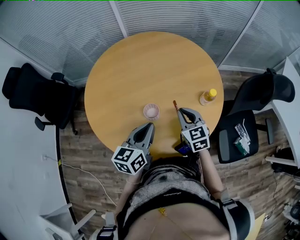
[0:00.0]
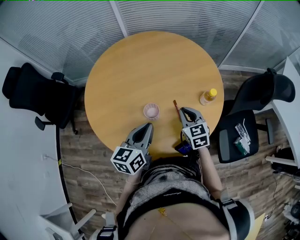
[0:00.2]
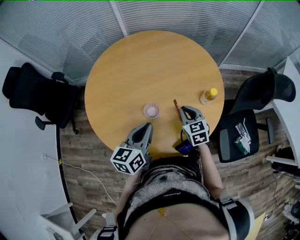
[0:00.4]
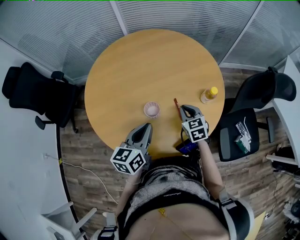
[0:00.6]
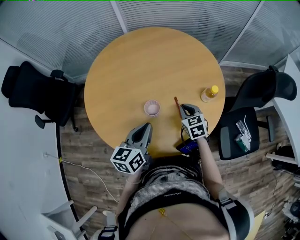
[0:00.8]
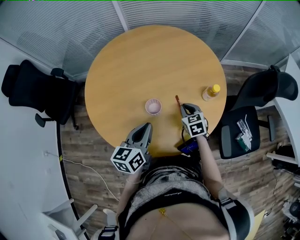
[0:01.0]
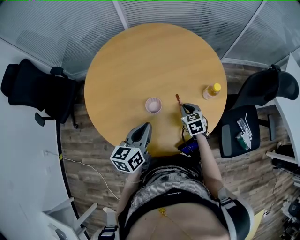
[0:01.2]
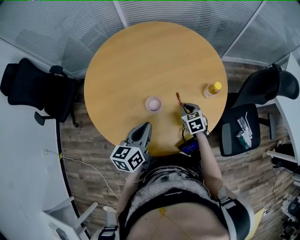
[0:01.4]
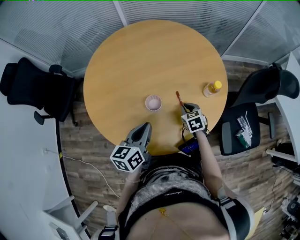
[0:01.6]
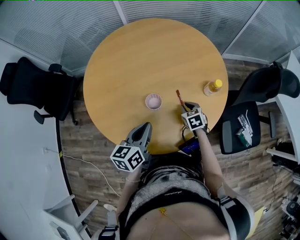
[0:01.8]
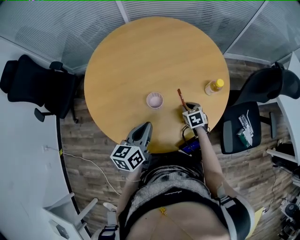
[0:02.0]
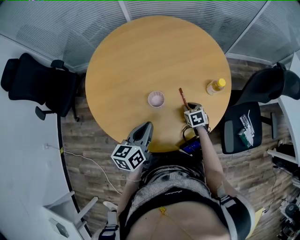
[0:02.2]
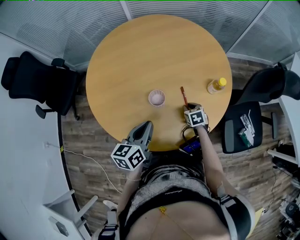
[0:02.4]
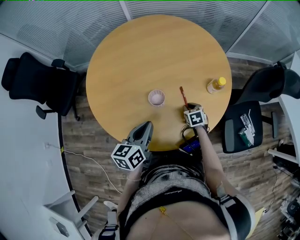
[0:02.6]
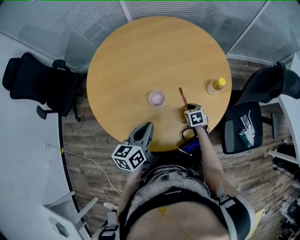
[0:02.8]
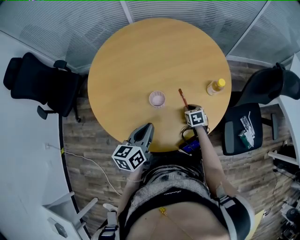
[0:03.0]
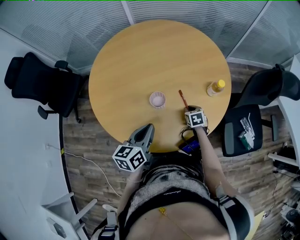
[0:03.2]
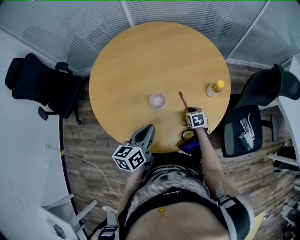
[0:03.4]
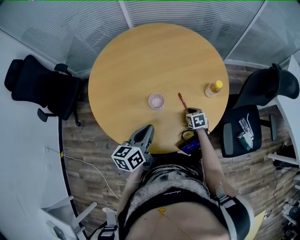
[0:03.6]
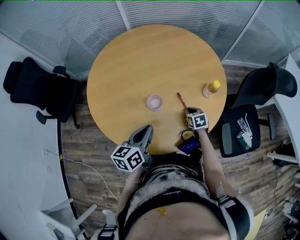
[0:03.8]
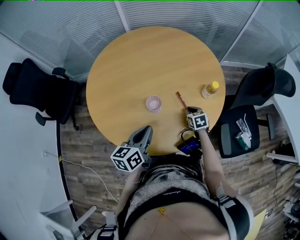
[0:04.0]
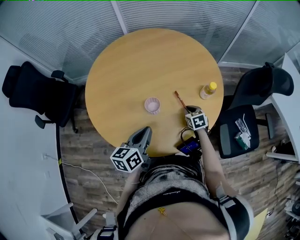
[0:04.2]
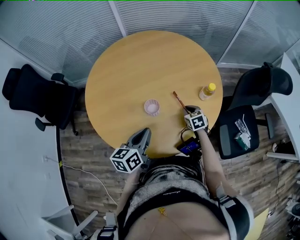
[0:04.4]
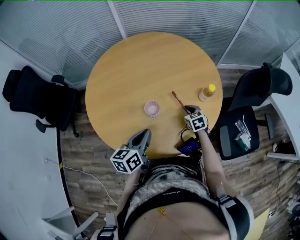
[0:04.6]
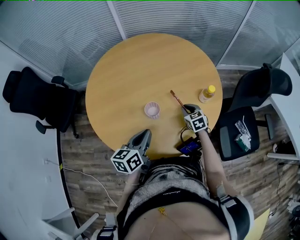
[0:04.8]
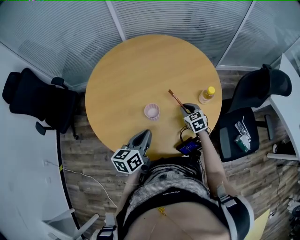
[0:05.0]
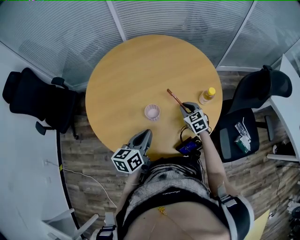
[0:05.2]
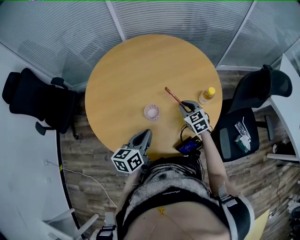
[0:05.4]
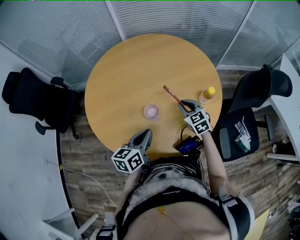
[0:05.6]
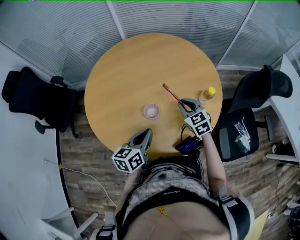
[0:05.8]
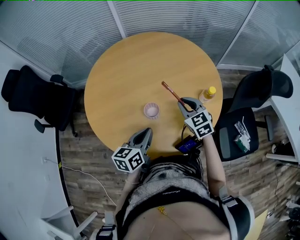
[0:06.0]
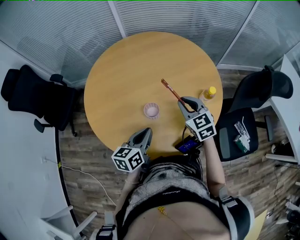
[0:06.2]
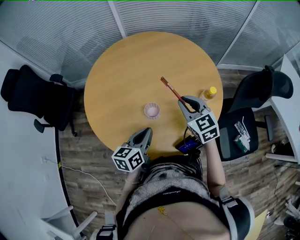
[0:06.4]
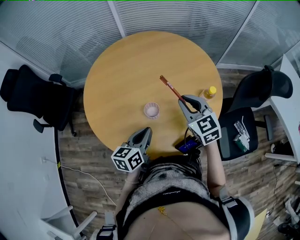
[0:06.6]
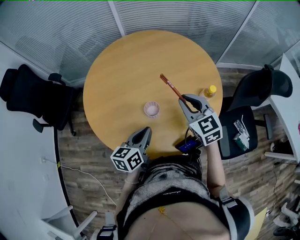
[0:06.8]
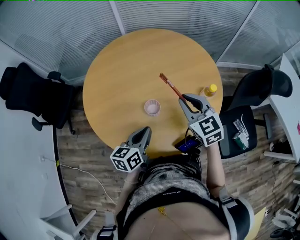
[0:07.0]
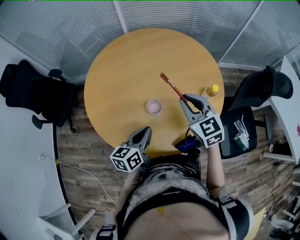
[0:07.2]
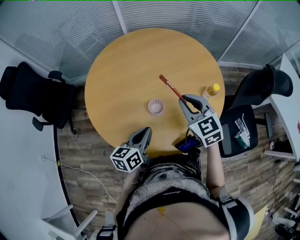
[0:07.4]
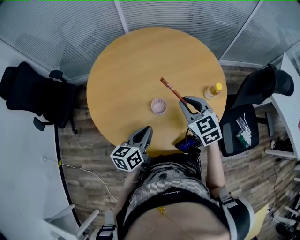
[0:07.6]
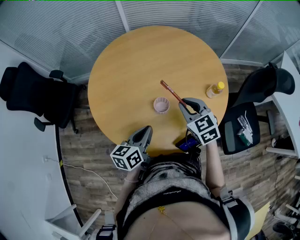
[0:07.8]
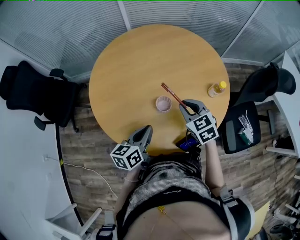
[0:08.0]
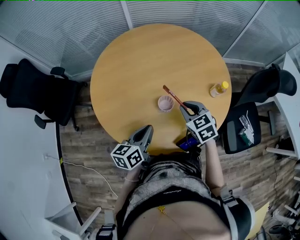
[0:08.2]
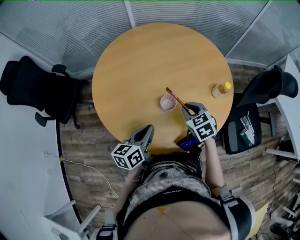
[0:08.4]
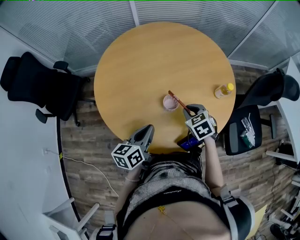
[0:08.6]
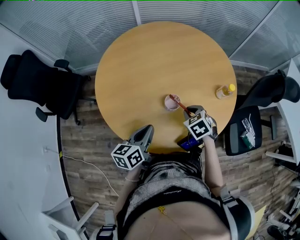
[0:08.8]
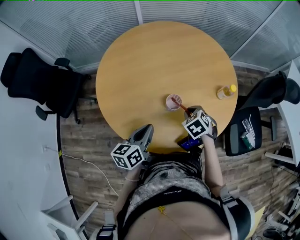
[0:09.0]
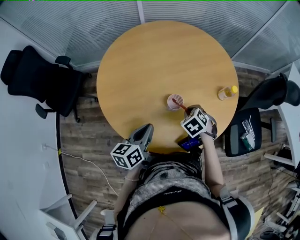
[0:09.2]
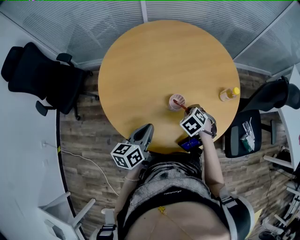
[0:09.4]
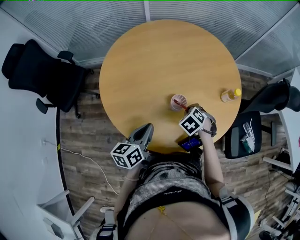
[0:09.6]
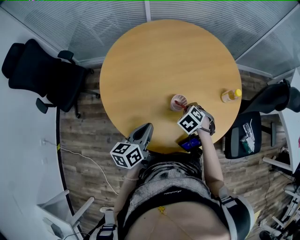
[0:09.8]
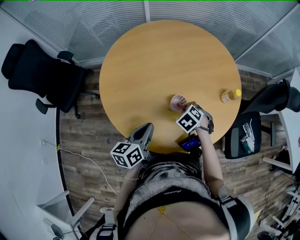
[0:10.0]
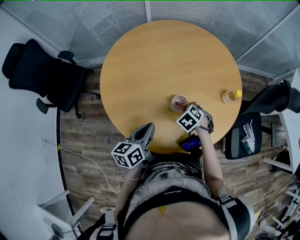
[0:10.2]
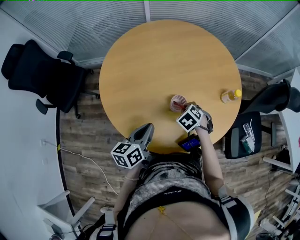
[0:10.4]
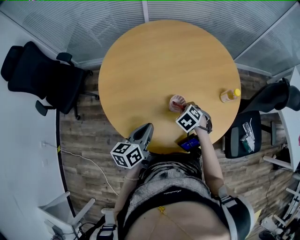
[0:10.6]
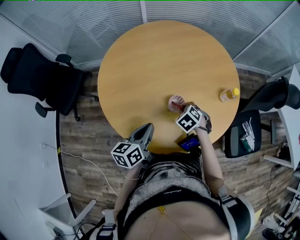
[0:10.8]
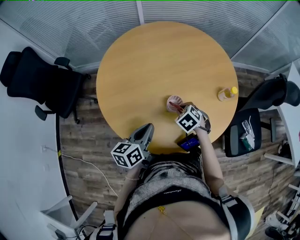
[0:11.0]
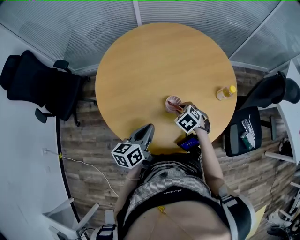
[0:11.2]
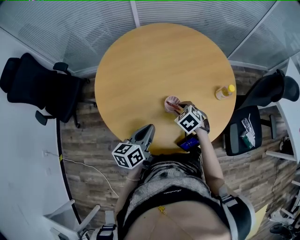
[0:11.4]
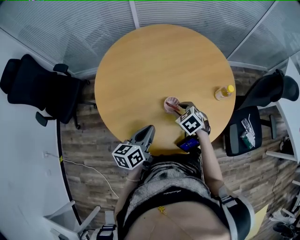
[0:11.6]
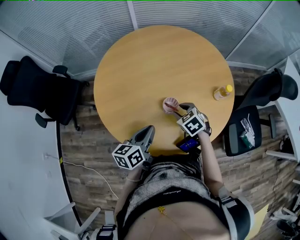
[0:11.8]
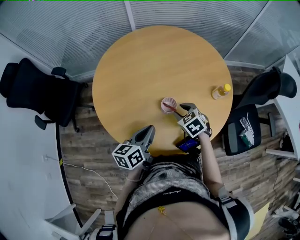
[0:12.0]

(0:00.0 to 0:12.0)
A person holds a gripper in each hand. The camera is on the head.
0:00.0 - 0:01.6: The right gripper goes roughly 15 cm downward, and rotates some 20 degrees; the left gripper ends up roughly 5 cm from where it was.
0:01.6 - 0:03.0: The right gripper heads downward, covering about 5 cm.
0:03.0 - 0:04.4: The right gripper shifts about 5 cm upward.
0:04.4 - 0:06.0: The right gripper is displaced upward by about 15 cm, and swivels approximately 20 degrees.
0:06.0 - 0:07.6: The right gripper goes some 10 cm upward and to the left.
0:07.6 - 0:09.0: The right gripper shifts roughly 15 cm downward, and points its fingers roughly 30 degrees further downward. The left gripper shifts roughly 5 cm to the left.
0:09.0 - 0:10.4: The right gripper ends up about 5 cm from where it was.
0:10.4 - 0:12.0: The right gripper swivels approximately 20 degrees, and opens up.

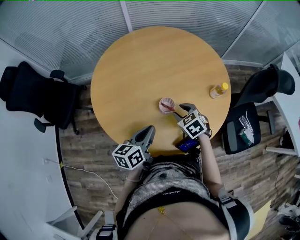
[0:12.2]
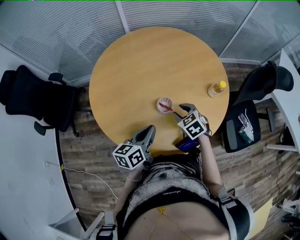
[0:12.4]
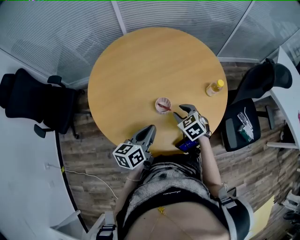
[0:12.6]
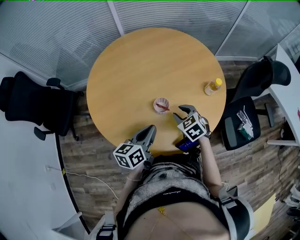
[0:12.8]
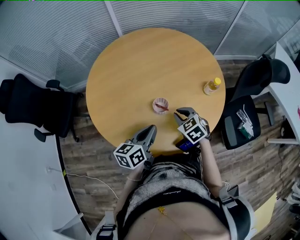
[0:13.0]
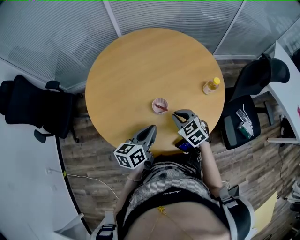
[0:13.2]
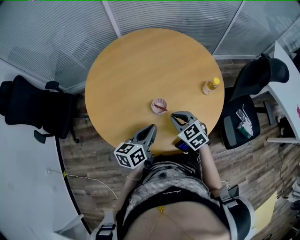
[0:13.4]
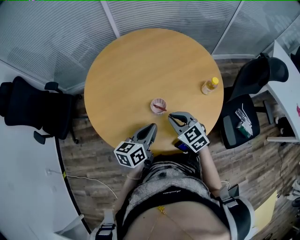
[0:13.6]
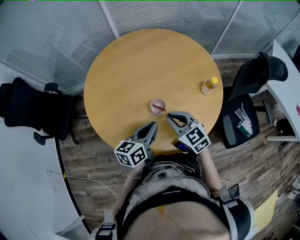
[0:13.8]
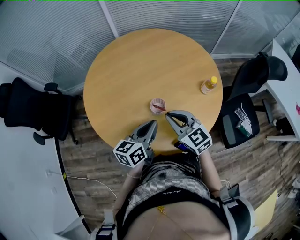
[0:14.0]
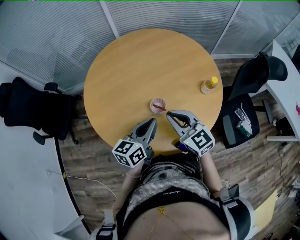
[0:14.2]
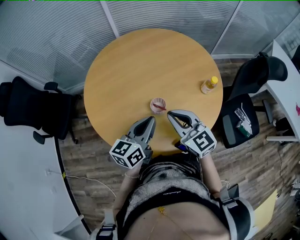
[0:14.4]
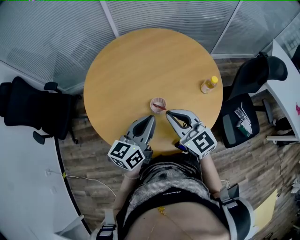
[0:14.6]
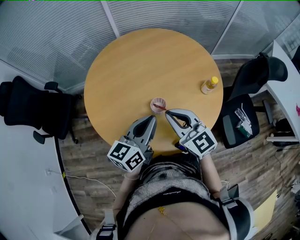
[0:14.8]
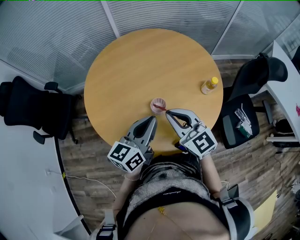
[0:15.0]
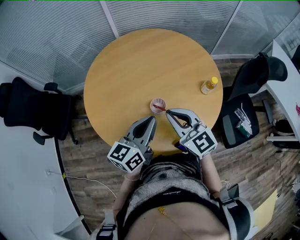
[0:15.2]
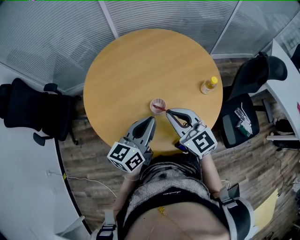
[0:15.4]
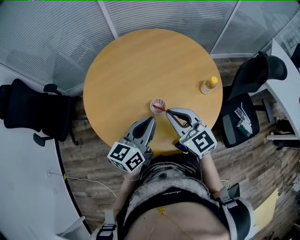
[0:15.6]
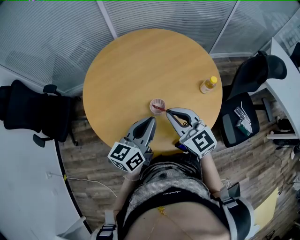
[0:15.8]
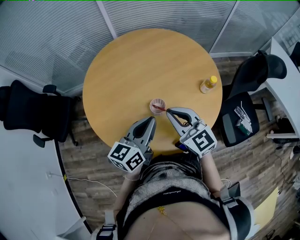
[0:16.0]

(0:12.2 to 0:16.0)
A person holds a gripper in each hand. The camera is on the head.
0:12.2 - 0:13.4: The right gripper shifts by about 5 cm, and closes its fingers.
0:13.4 - 0:14.8: Both grippers move upward, approximately 10 cm. The right gripper angles its fingers upward, by roughly 30 degrees.
0:14.8 - 0:16.0: The grippers move only a little.

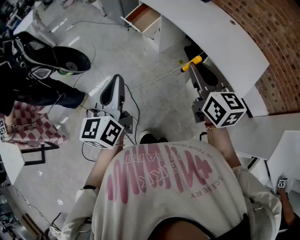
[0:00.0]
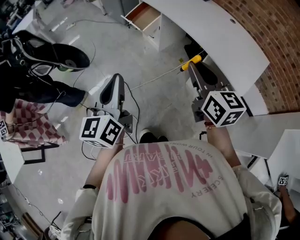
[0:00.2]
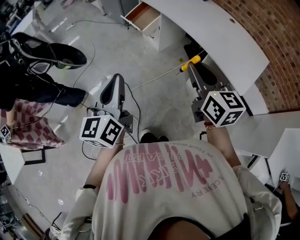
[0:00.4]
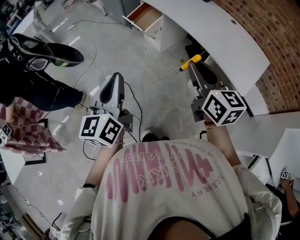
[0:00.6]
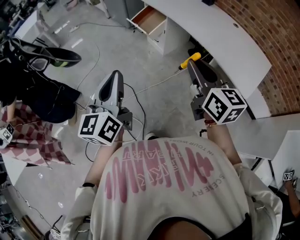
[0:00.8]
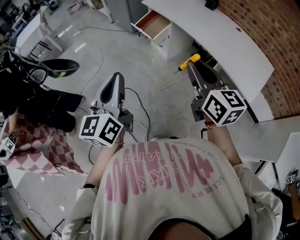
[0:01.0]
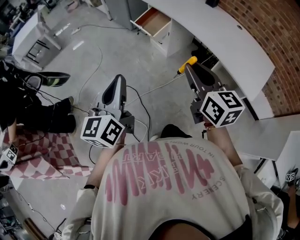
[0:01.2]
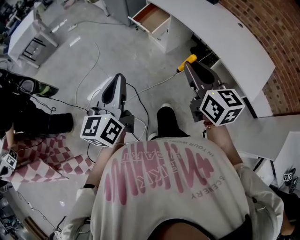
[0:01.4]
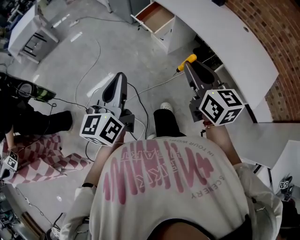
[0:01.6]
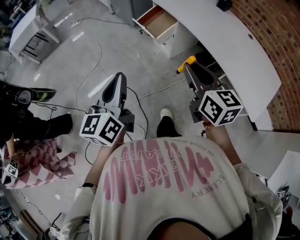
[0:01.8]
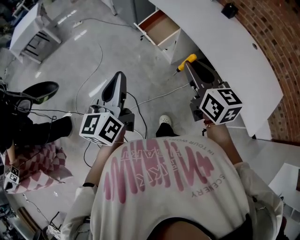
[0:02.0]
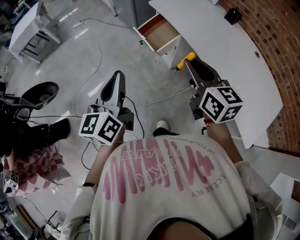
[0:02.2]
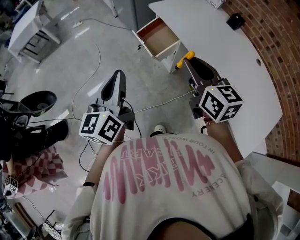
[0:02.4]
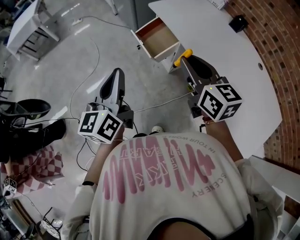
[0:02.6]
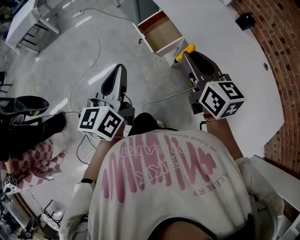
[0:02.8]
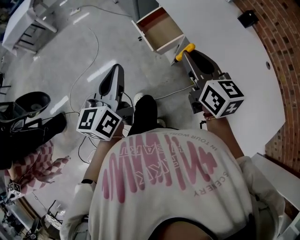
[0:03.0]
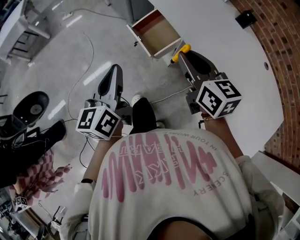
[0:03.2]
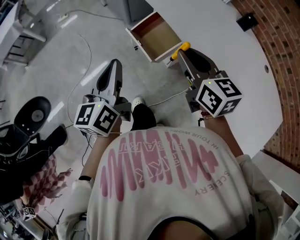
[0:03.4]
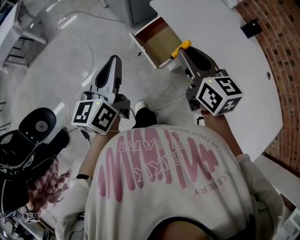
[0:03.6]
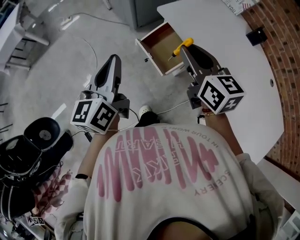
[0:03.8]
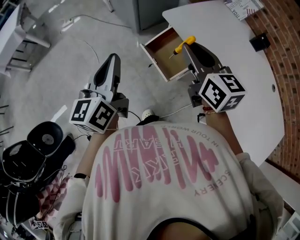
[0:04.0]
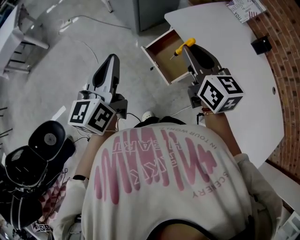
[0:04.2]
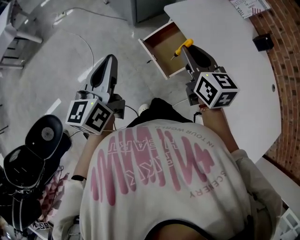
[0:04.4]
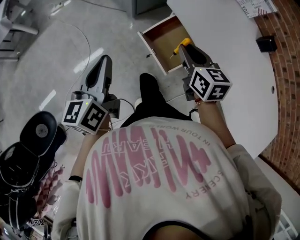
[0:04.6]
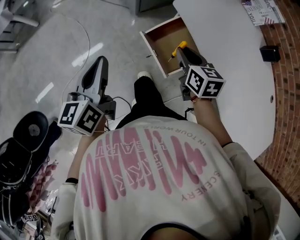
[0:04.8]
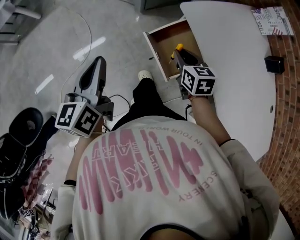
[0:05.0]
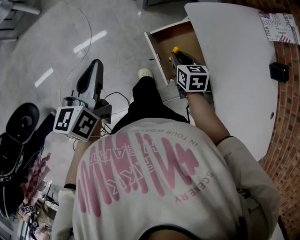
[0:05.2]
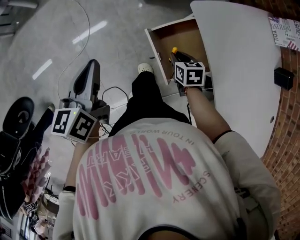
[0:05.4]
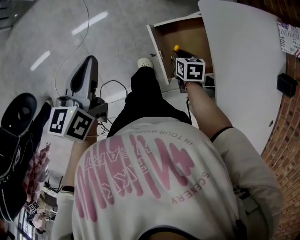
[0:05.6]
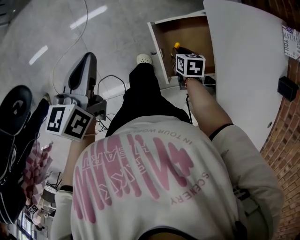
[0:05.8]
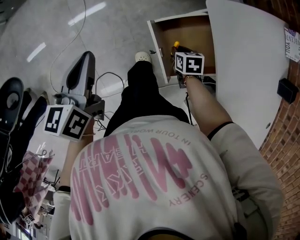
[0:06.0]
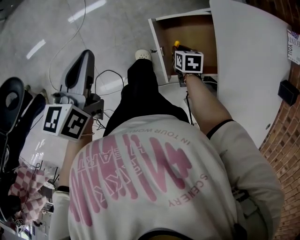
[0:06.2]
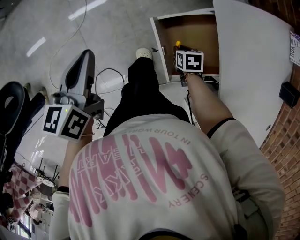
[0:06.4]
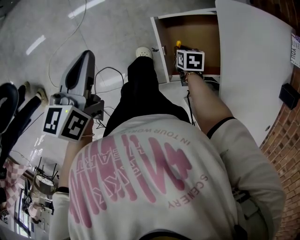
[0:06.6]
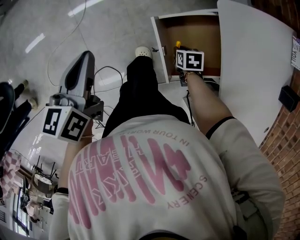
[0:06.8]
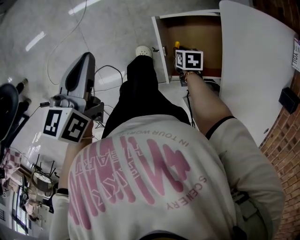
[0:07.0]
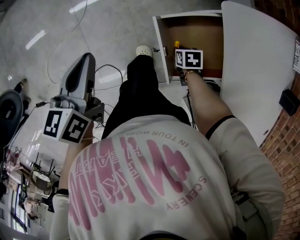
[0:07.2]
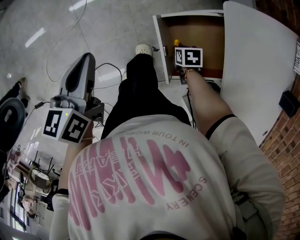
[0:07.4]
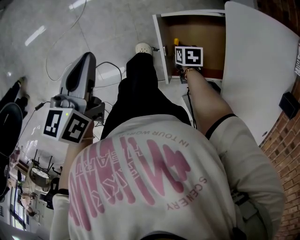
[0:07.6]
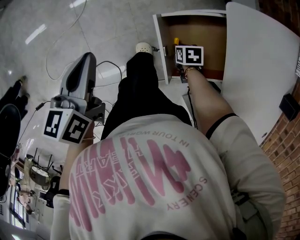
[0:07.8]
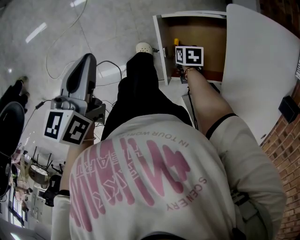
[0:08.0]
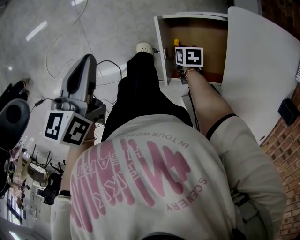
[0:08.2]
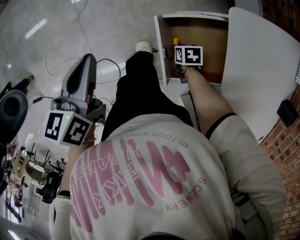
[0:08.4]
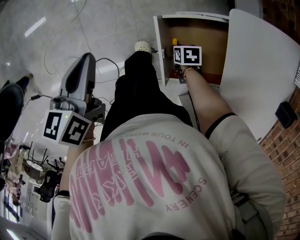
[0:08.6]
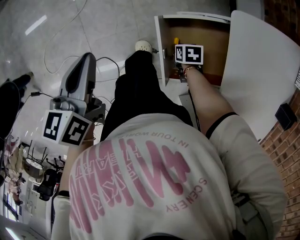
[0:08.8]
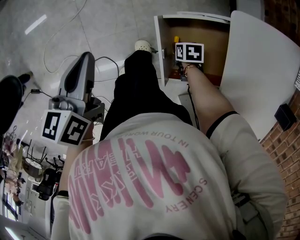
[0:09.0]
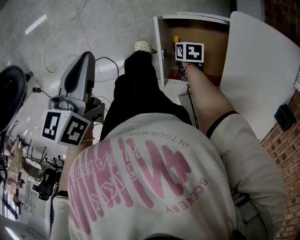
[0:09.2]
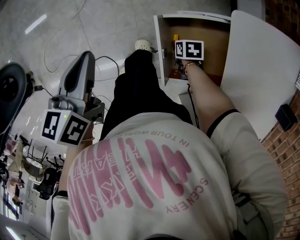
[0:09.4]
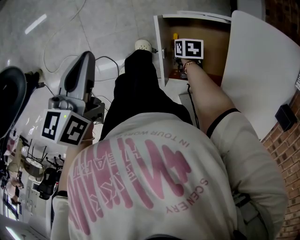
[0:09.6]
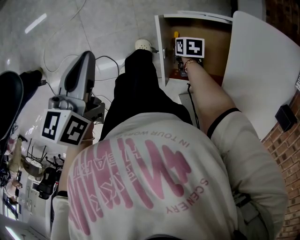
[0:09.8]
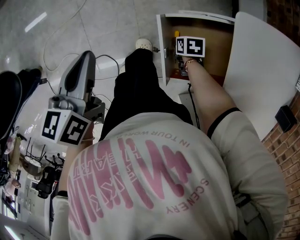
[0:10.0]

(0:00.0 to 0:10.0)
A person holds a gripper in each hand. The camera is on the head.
0:00.0 - 0:01.4: Both grippers move to the left, about 10 cm.
0:01.4 - 0:02.8: Both grippers travel together forward, about 35 cm.
0:02.8 - 0:04.2: The grippers both shift forward by about 30 cm.
0:04.2 - 0:05.8: The left gripper moves downward and forward, approximately 20 cm, and turns by roughly 30 degrees; the right gripper goes roughly 40 cm downward, and points its fingers approximately 50 degrees further downward.
0:05.8 - 0:07.2: The right gripper shifts some 10 cm downward.
0:07.2 - 0:10.0: The grippers move only a little.
